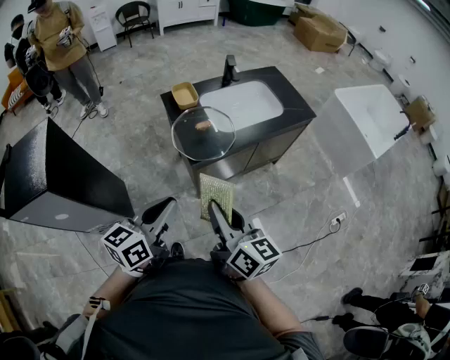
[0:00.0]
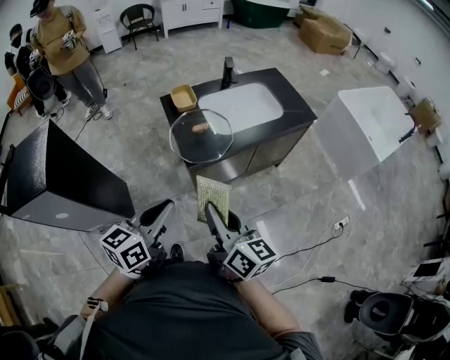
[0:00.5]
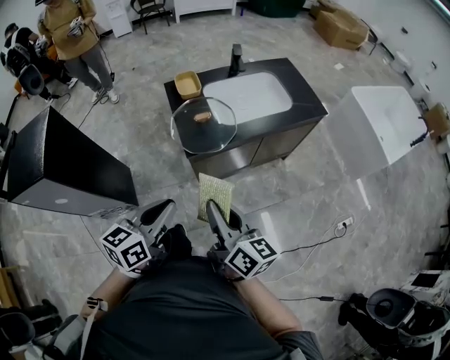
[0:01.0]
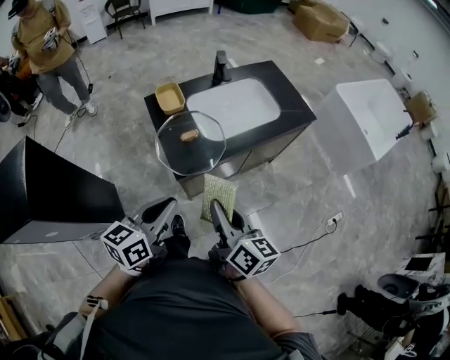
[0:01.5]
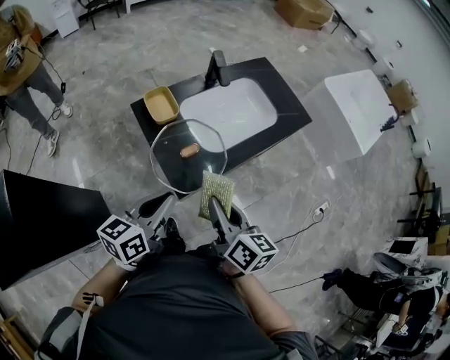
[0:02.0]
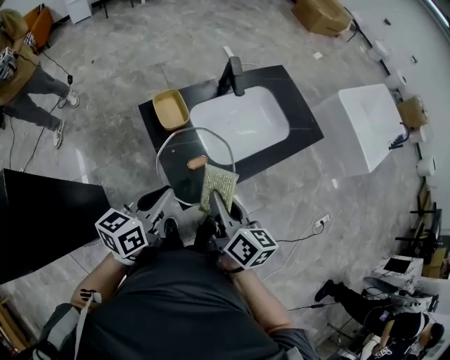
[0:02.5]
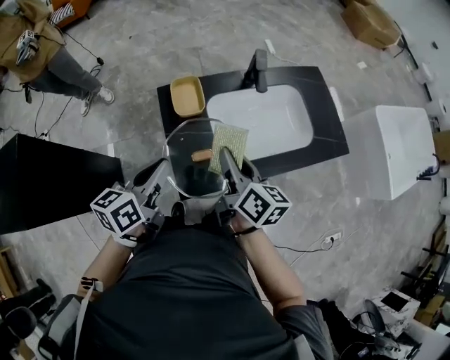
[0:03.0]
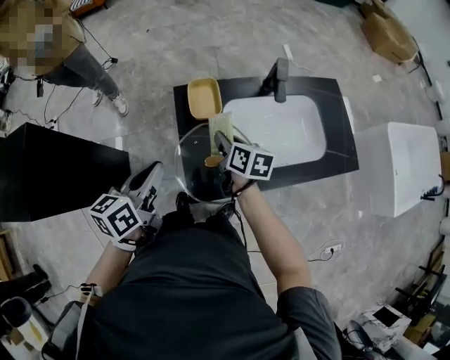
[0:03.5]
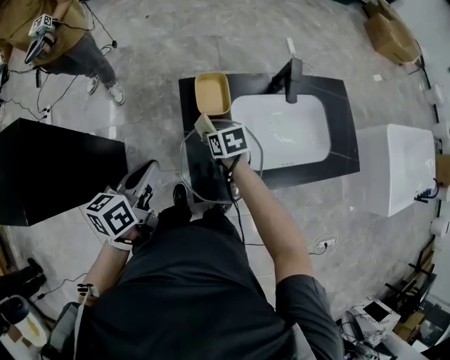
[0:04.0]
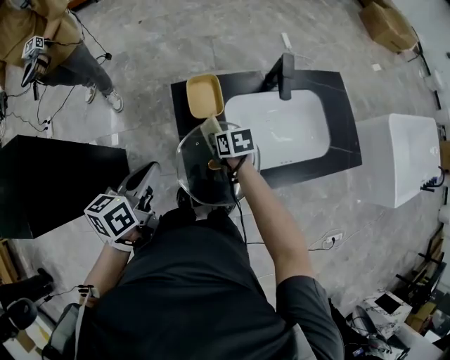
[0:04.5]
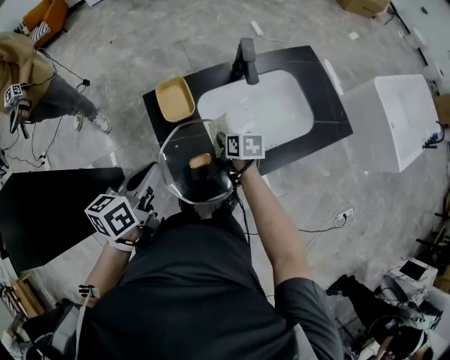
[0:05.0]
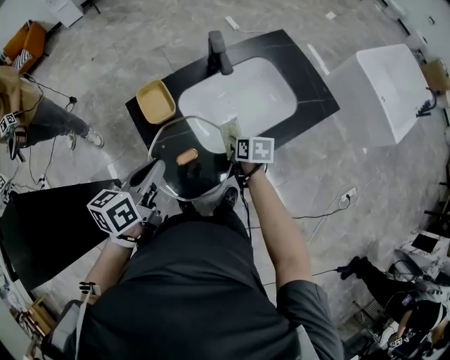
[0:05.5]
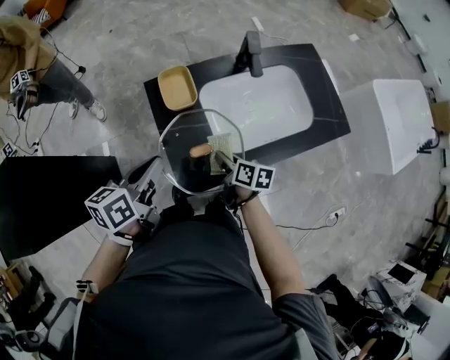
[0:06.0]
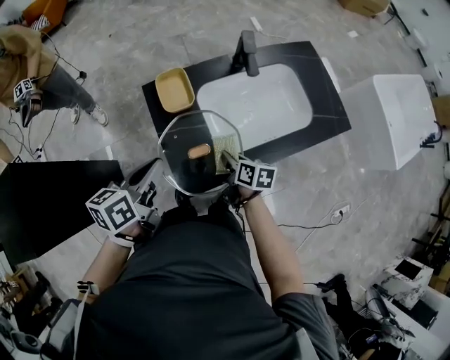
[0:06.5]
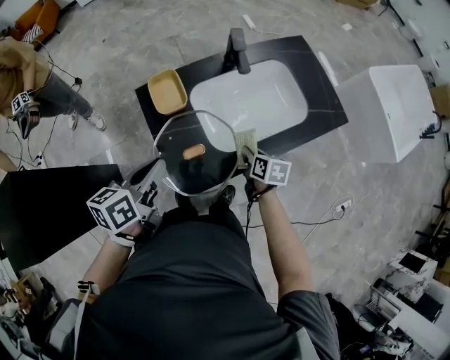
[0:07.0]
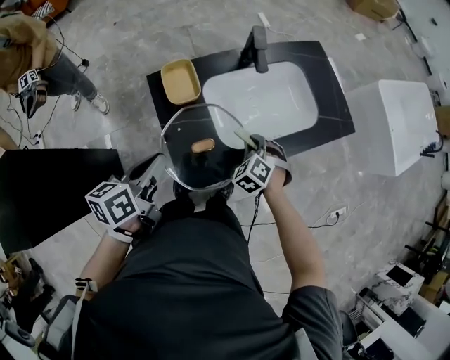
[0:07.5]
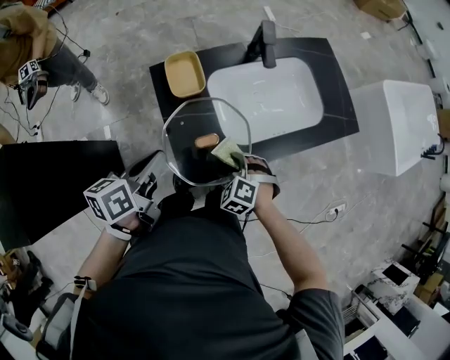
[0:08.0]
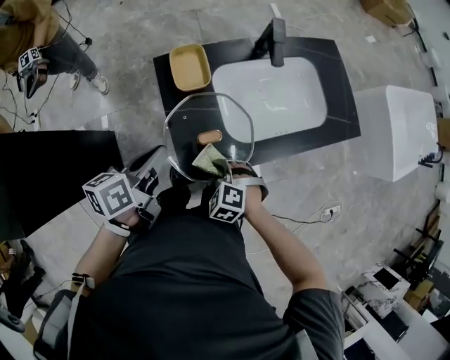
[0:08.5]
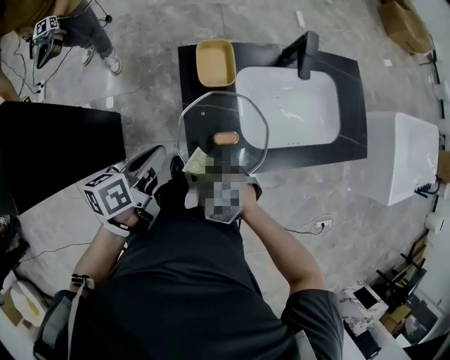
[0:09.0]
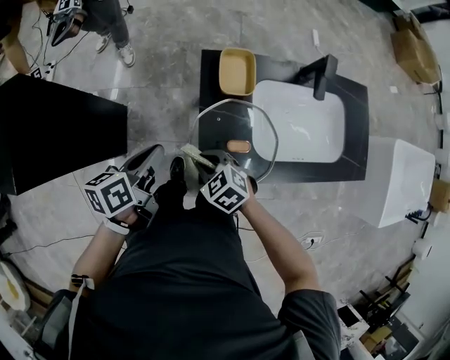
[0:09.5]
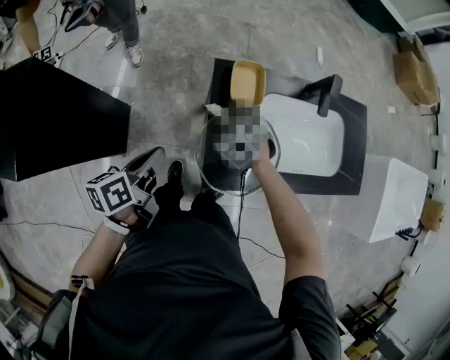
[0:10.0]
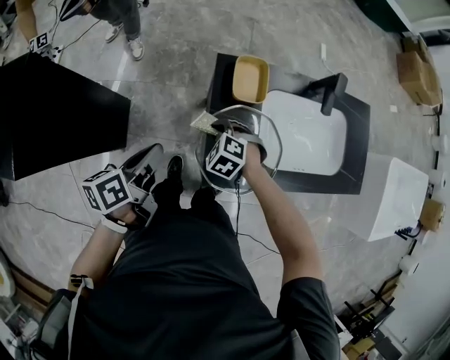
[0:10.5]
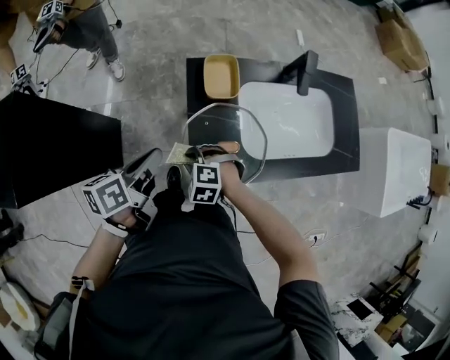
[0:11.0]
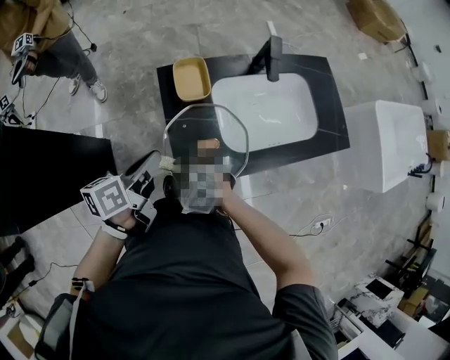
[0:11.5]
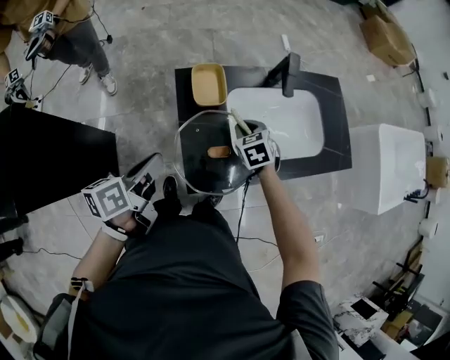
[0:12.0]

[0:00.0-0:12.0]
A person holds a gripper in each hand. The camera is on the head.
0:00.0 to 0:02.0: The grippers both shift forward by approximately 20 cm.
0:02.0 to 0:04.0: The right gripper ends up roughly 35 cm from where it was, and tips its fingers downward by some 40 degrees. The left gripper changes place by some 15 cm, and turns by about 40 degrees.
0:04.0 to 0:06.0: The left gripper moves about 10 cm. Meanwhile the right gripper ends up about 15 cm from where it was, and turns by some 50 degrees.
0:06.0 to 0:08.0: The right gripper reaches approximately 10 cm to the right, then returns, and twists about 90 degrees counterclockwise, seen from behind.
0:08.0 to 0:10.0: The left gripper ends up some 15 cm from where it was, and changes its angle by approximately 20 degrees. Meanwhile the right gripper moves roughly 25 cm.
0:10.0 to 0:12.0: The left gripper shifts some 5 cm to the right. Meanwhile the right gripper shifts roughly 15 cm to the right, and rotates about 30 degrees.

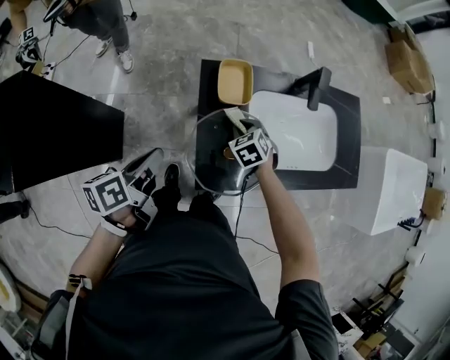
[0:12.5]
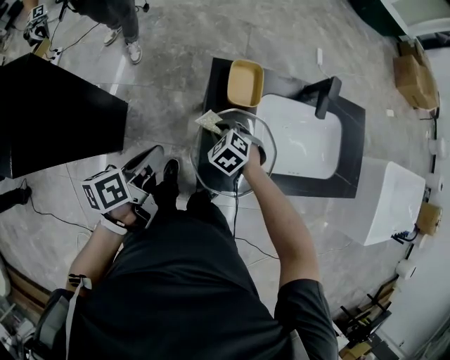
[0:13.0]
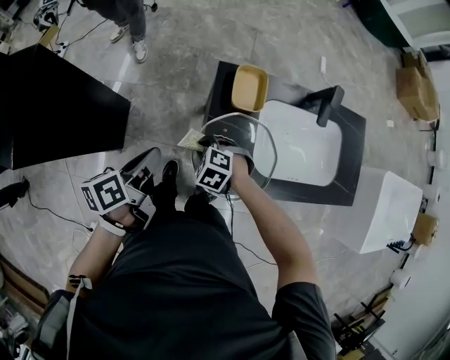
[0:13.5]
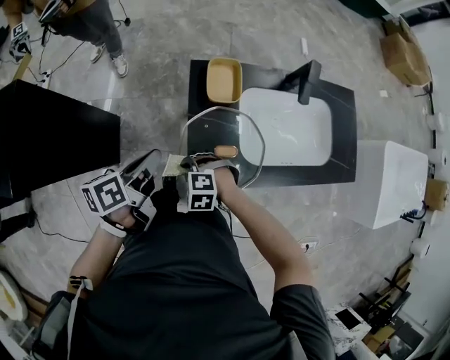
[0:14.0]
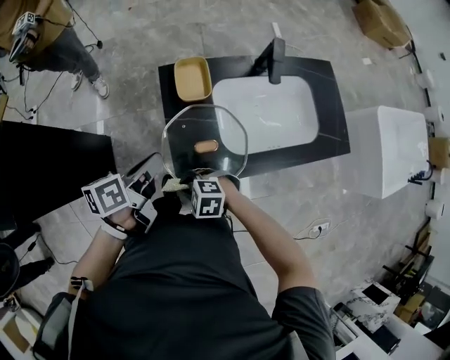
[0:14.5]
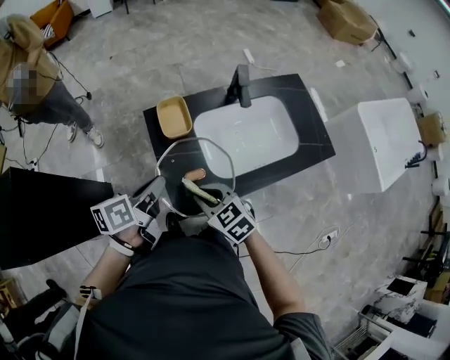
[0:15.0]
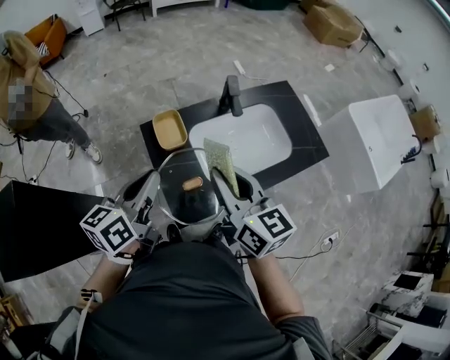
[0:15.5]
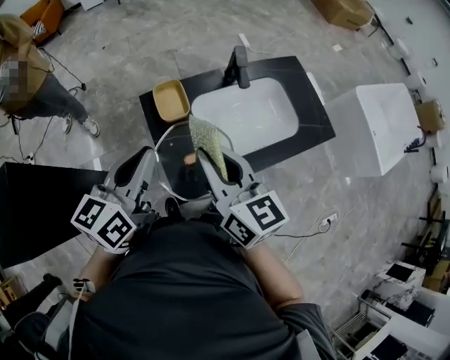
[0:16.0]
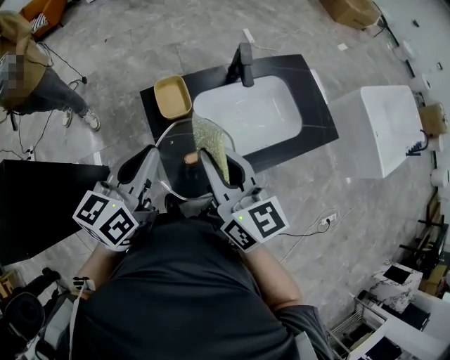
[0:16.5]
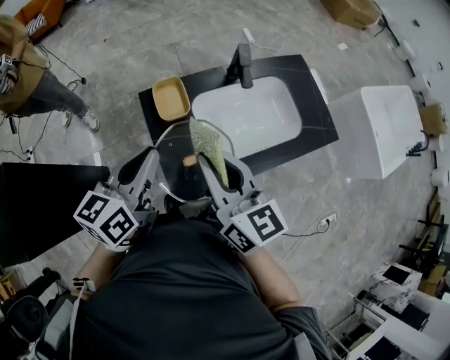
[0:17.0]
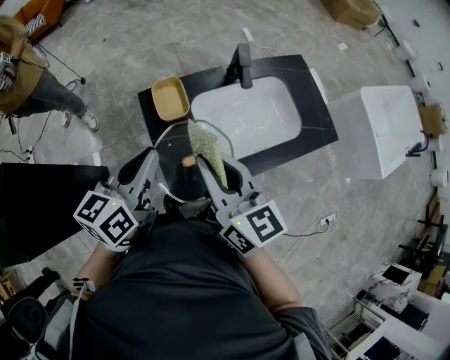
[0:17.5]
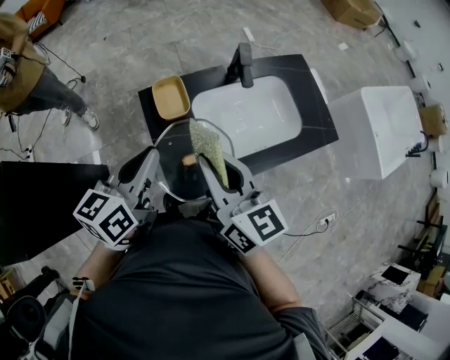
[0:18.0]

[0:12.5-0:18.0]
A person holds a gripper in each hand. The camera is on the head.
0:12.5 to 0:14.5: The right gripper changes place by some 25 cm, and swivels some 40 degrees. Meanwhile the left gripper changes place by roughly 10 cm.
0:14.5 to 0:16.0: The left gripper travels upward by approximately 15 cm, and swivels approximately 40 degrees. Meanwhile the right gripper goes approximately 30 cm upward, and tilts its fingers approximately 50 degrees upward.
0:16.0 to 0:18.0: The grippers stay close to where they were, moving slightly.

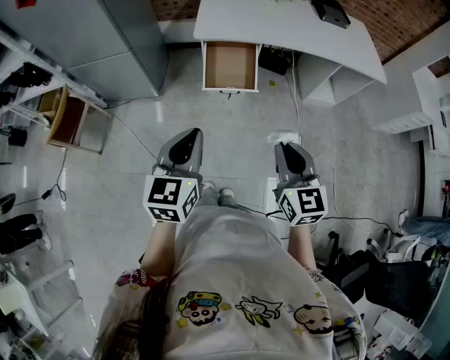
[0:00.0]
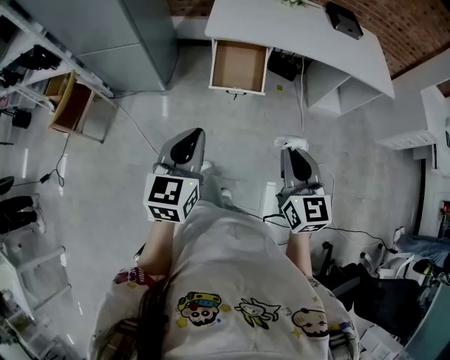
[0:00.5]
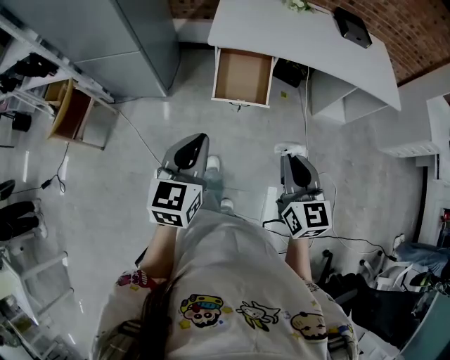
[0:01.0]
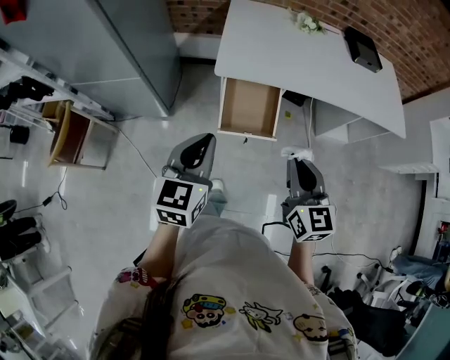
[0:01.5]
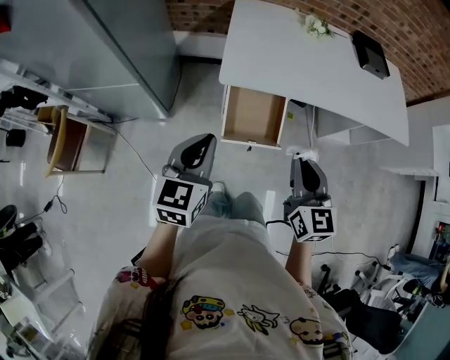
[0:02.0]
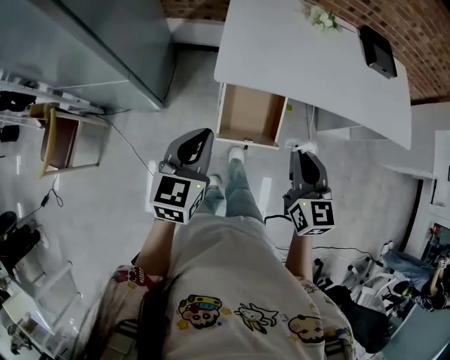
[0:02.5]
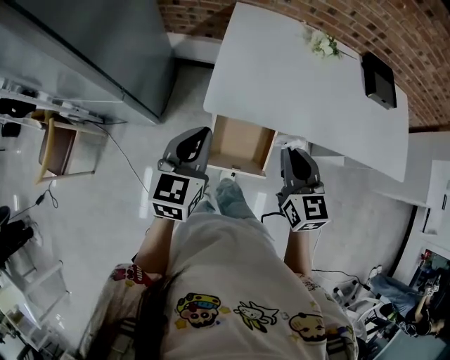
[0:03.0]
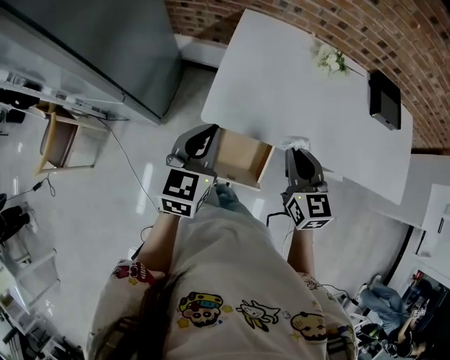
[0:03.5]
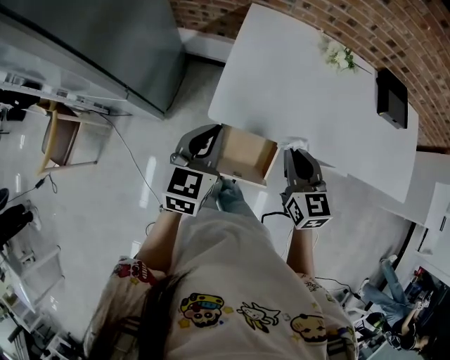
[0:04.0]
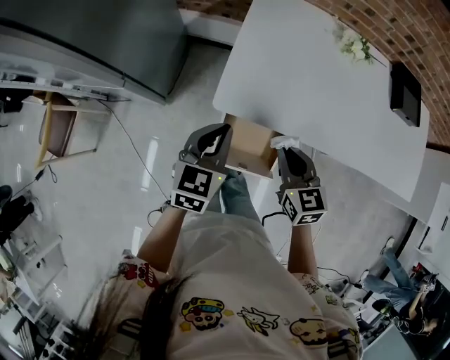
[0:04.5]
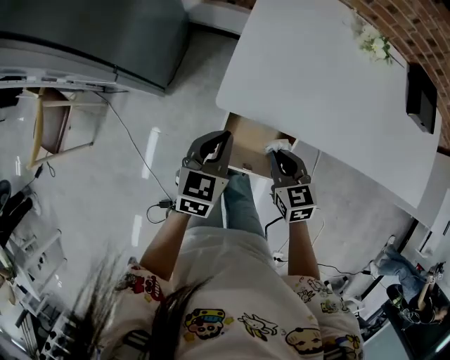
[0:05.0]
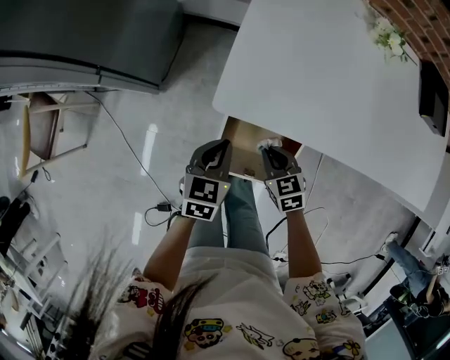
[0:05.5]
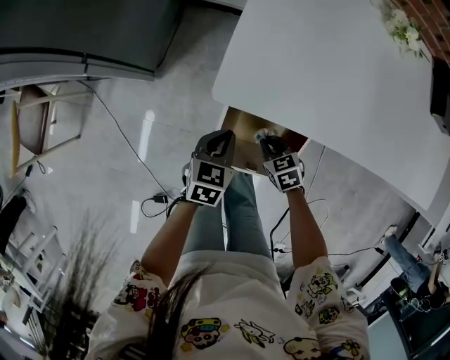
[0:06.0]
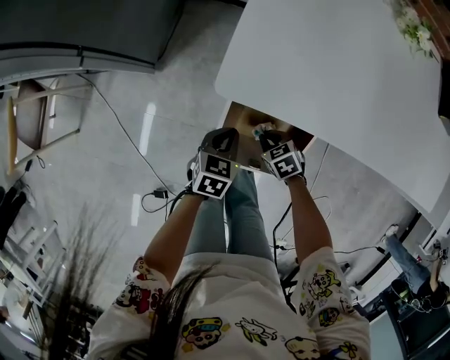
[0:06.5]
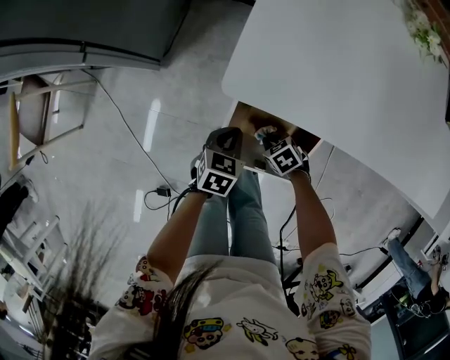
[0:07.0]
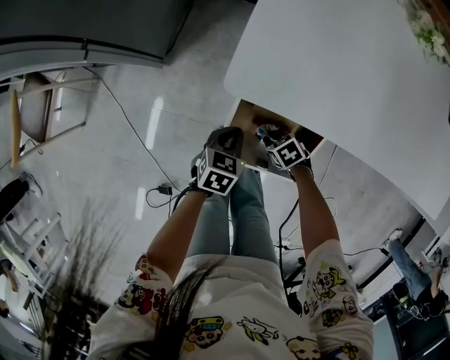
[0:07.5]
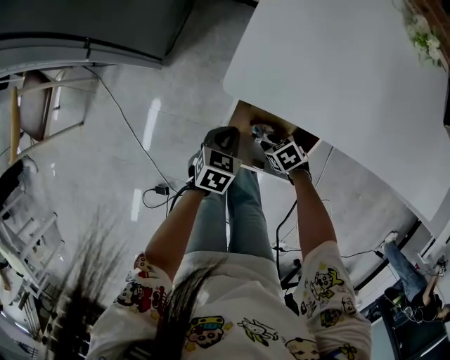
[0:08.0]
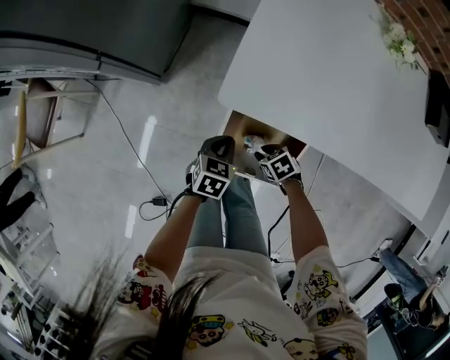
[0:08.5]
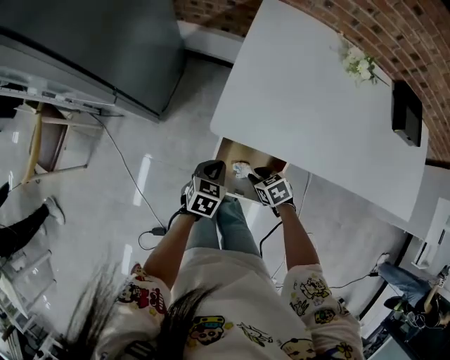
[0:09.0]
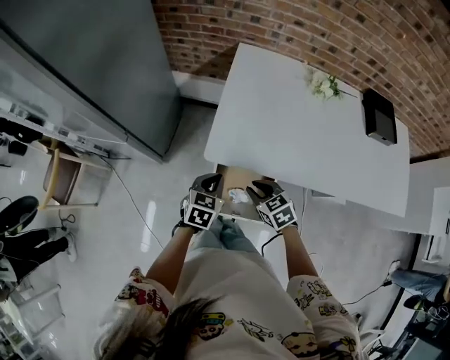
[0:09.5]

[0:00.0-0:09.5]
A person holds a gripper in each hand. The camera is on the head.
0:00.0 to 0:02.0: Both grippers move forward, approximately 30 cm.
0:02.0 to 0:04.0: Both grippers move forward, about 25 cm.
0:04.0 to 0:05.5: The two grippers go roughly 30 cm downward. The right gripper rotates approximately 30 degrees.
0:05.5 to 0:07.5: Both grippers travel together downward, about 20 cm. The right gripper rotates about 40 degrees.
0:07.5 to 0:09.5: The grippers both shift upward by some 30 cm. The right gripper changes its angle by approximately 30 degrees.
